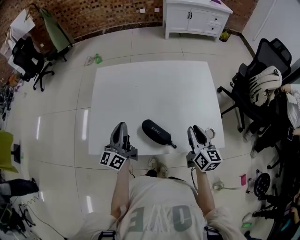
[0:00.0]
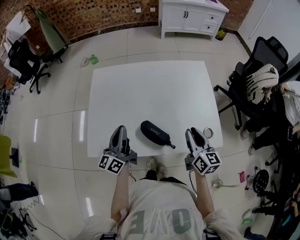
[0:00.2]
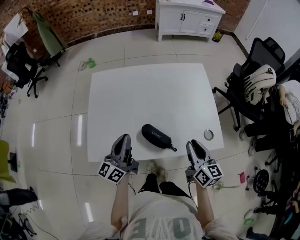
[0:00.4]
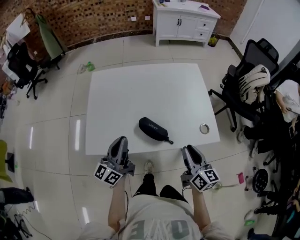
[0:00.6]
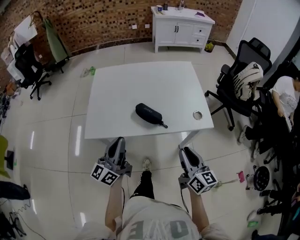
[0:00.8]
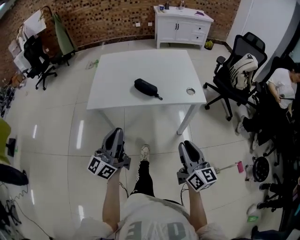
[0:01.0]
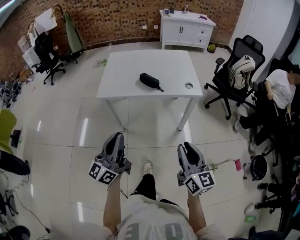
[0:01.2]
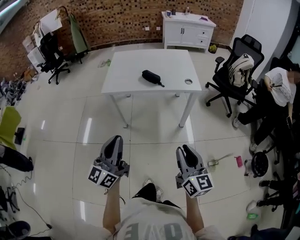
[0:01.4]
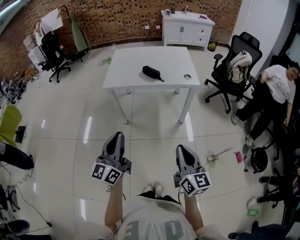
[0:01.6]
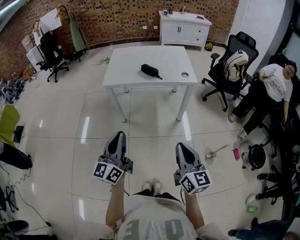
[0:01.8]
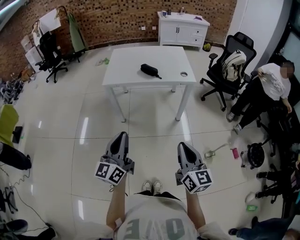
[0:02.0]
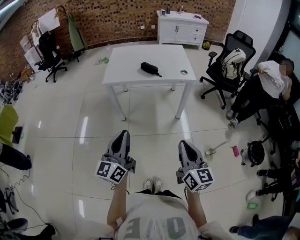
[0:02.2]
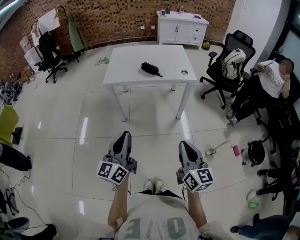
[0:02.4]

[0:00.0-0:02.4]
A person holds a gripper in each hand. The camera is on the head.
0:00.0 to 0:01.2: The two grippers travel together, backward, roughly 60 cm.
0:01.2 to 0:02.4: The two grippers go some 20 cm backward. The right gripper closes up.

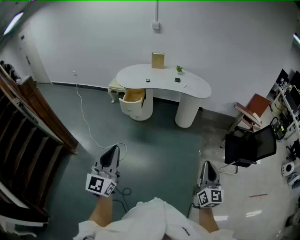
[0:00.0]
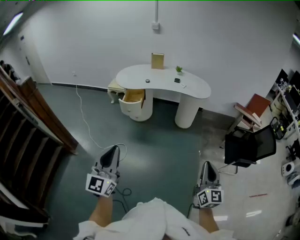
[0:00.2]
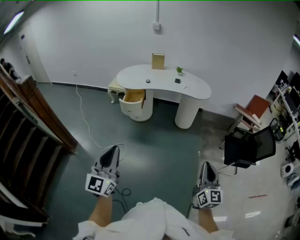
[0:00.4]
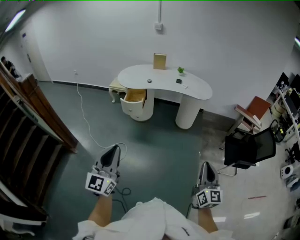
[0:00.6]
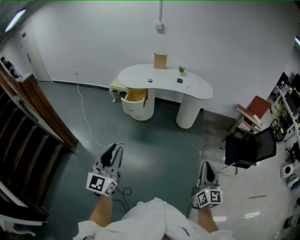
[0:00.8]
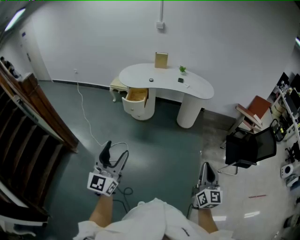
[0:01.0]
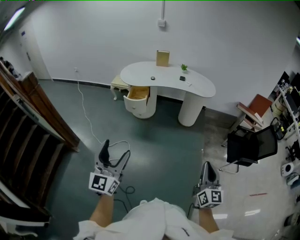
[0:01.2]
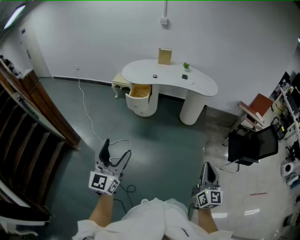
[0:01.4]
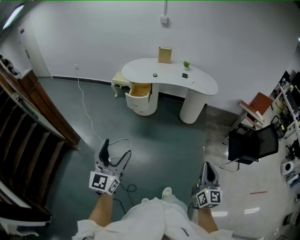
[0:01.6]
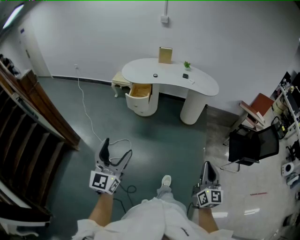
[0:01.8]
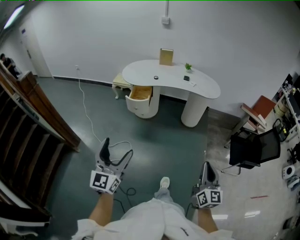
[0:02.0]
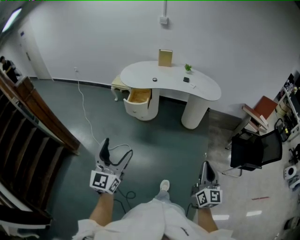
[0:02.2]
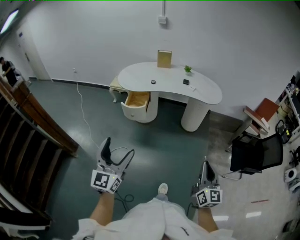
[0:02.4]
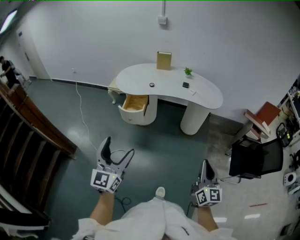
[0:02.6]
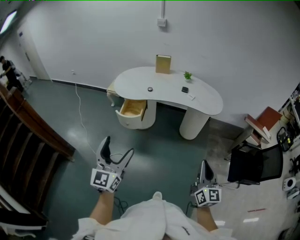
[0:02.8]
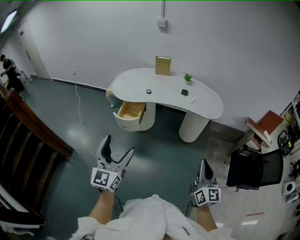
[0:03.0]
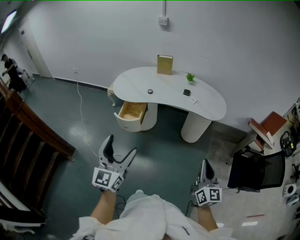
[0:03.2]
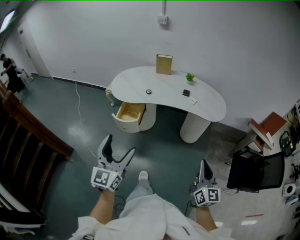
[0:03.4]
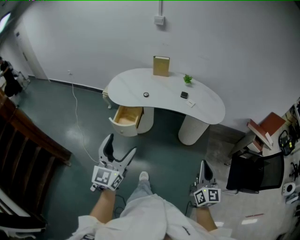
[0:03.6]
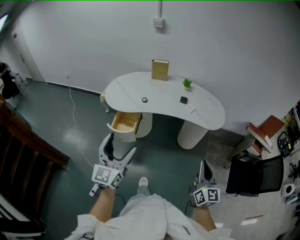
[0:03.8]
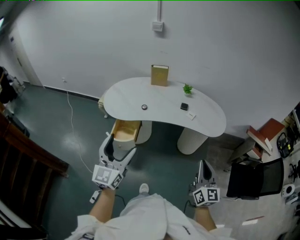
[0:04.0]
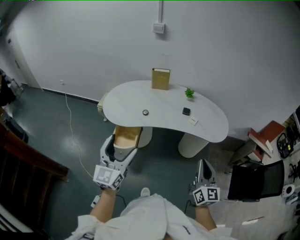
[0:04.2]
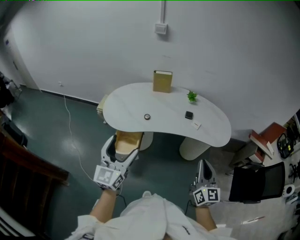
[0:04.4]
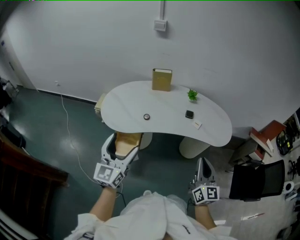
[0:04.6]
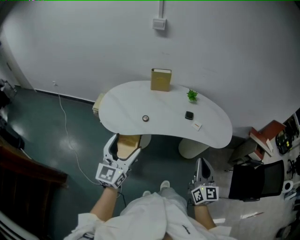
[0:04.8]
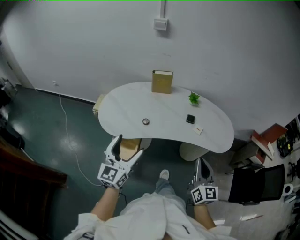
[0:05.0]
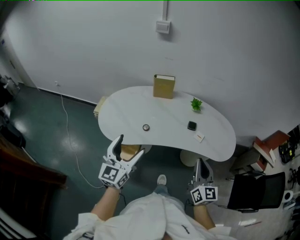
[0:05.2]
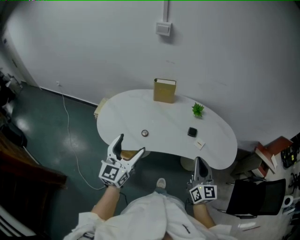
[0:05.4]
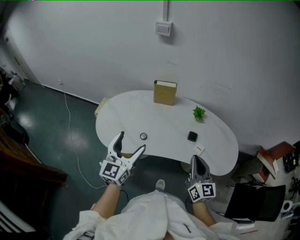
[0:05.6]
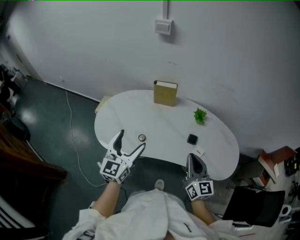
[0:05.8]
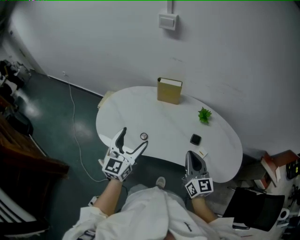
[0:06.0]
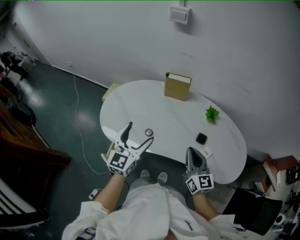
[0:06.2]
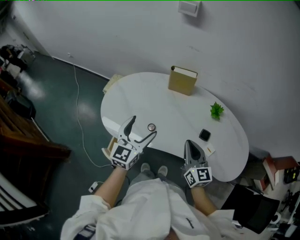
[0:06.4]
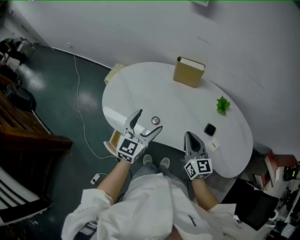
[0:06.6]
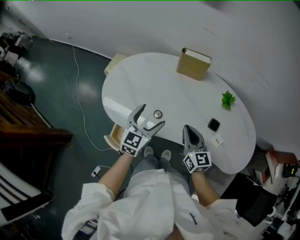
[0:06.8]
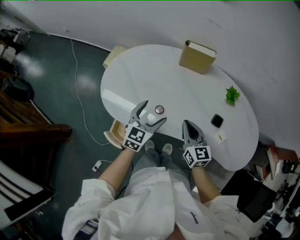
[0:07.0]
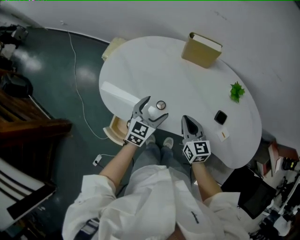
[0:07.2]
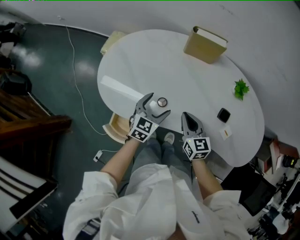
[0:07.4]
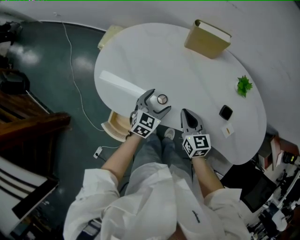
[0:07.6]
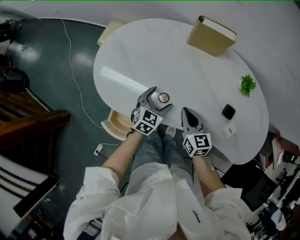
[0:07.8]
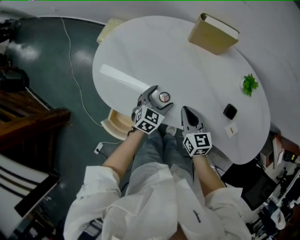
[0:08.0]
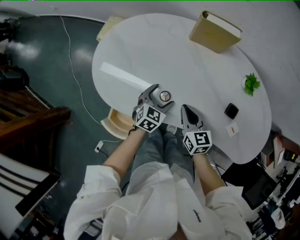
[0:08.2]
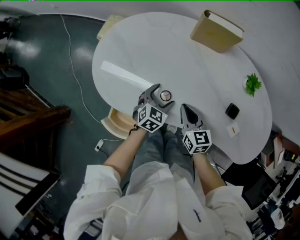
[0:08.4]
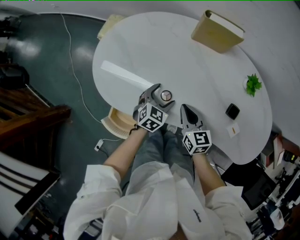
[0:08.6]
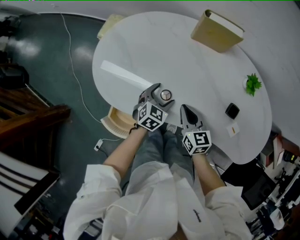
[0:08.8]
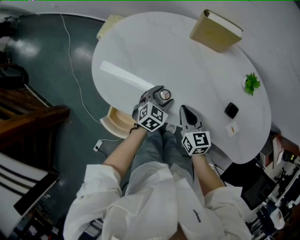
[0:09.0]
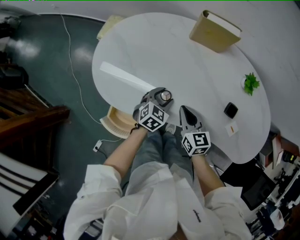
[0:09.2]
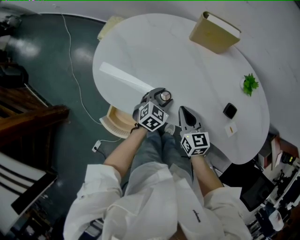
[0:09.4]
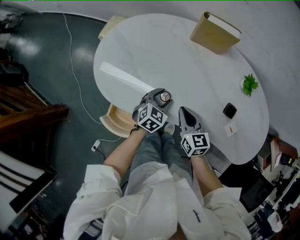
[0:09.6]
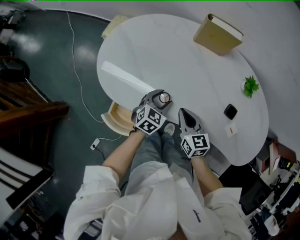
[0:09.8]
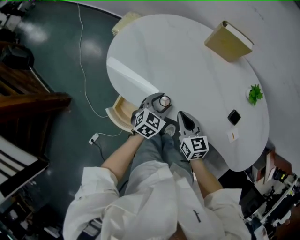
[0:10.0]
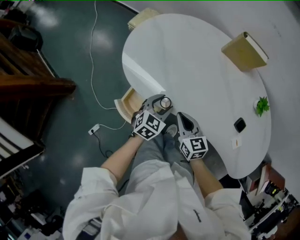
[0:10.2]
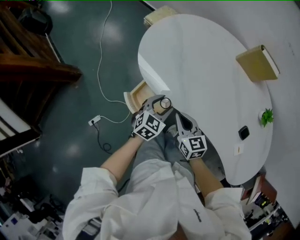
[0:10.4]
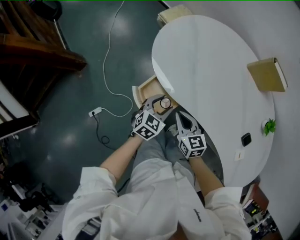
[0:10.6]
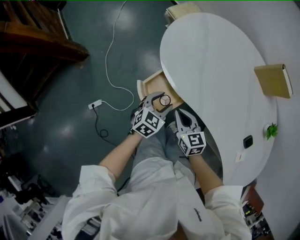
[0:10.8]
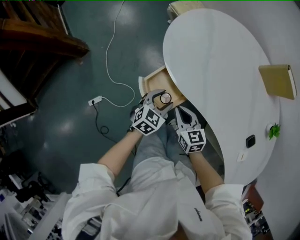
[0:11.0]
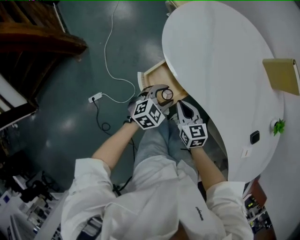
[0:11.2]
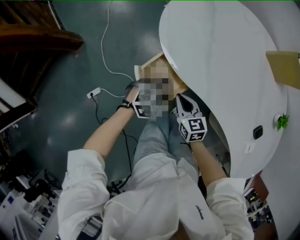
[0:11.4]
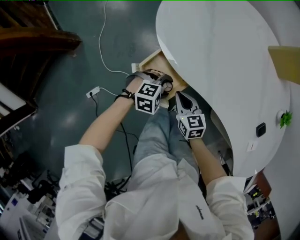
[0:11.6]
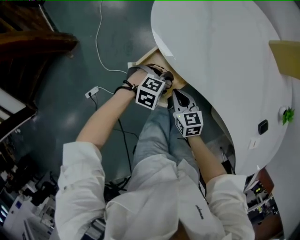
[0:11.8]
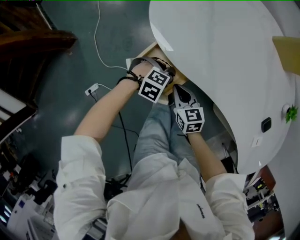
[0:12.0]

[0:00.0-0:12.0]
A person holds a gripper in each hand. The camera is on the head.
0:00.0 to 0:01.6: The two grippers go about 10 cm to the left. The left gripper opens.
0:01.6 to 0:03.0: Both grippers travel together forward, approximately 30 cm.
0:03.0 to 0:04.4: Both grippers travel together forward, roughly 30 cm.
0:04.4 to 0:06.0: The two grippers go roughly 30 cm forward. The right gripper changes its angle by approximately 20 degrees.
0:06.0 to 0:07.6: The left gripper is displaced downward by roughly 30 cm, and points its fingers about 30 degrees further downward. The right gripper moves downward, to the left and forward, approximately 30 cm, and swivels about 30 degrees.
0:07.6 to 0:09.0: The left gripper shifts approximately 5 cm downward.
0:09.0 to 0:10.4: The two grippers go approximately 15 cm to the left and backward. The left gripper changes its angle by roughly 20 degrees. Meanwhile the right gripper turns by approximately 30 degrees.
0:10.4 to 0:12.0: Both grippers travel together downward, approximately 15 cm. The left gripper swivels some 70 degrees.

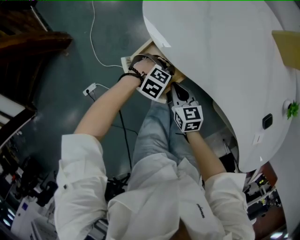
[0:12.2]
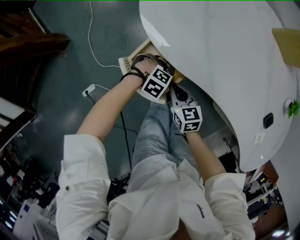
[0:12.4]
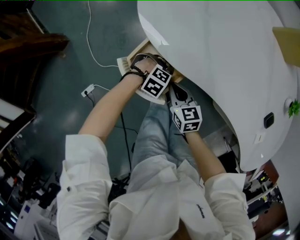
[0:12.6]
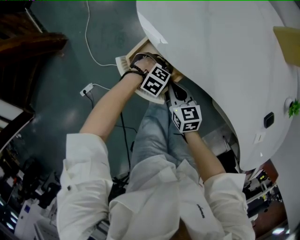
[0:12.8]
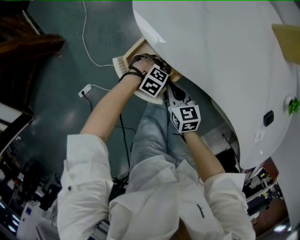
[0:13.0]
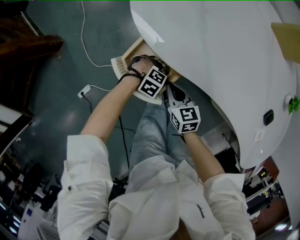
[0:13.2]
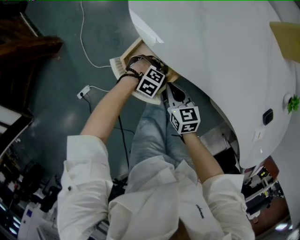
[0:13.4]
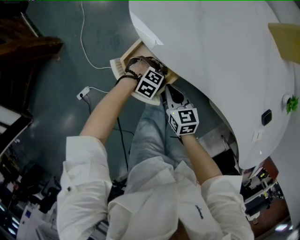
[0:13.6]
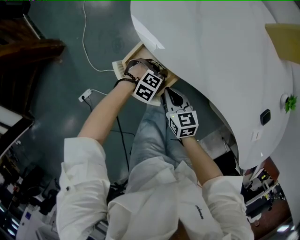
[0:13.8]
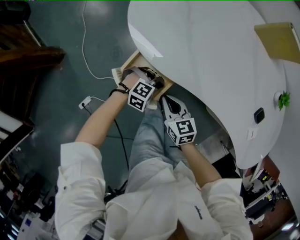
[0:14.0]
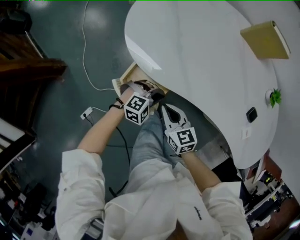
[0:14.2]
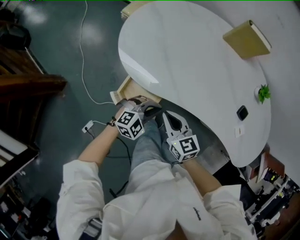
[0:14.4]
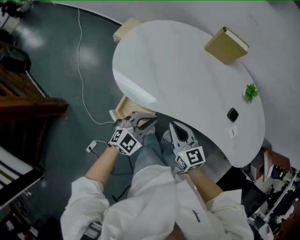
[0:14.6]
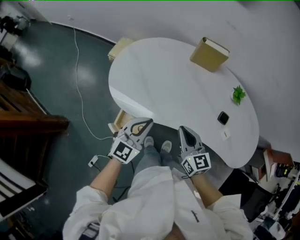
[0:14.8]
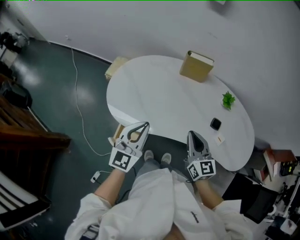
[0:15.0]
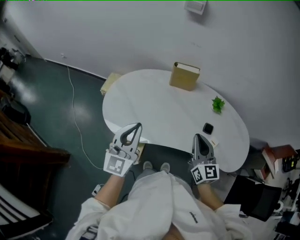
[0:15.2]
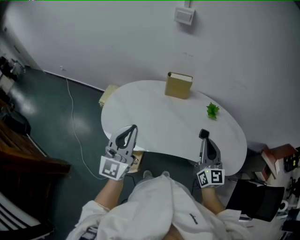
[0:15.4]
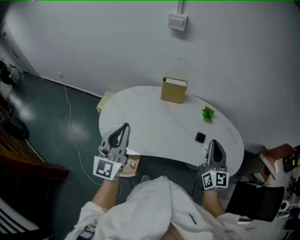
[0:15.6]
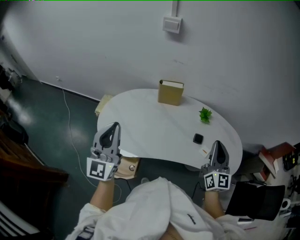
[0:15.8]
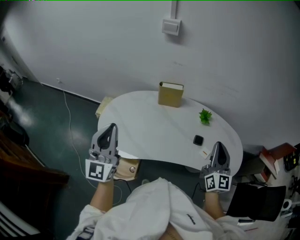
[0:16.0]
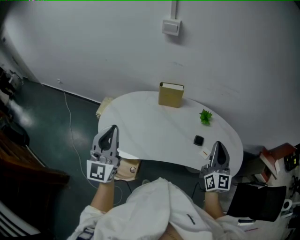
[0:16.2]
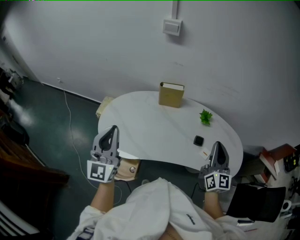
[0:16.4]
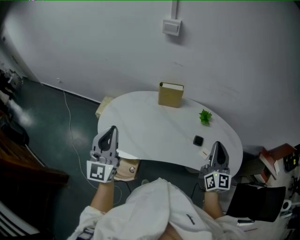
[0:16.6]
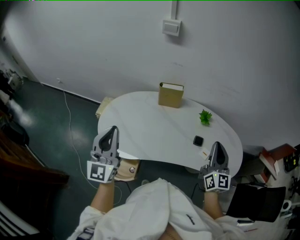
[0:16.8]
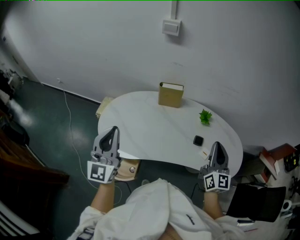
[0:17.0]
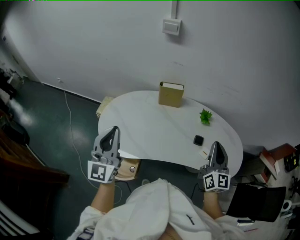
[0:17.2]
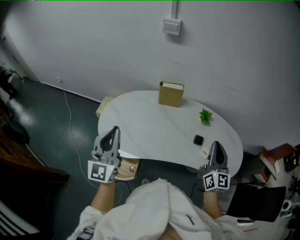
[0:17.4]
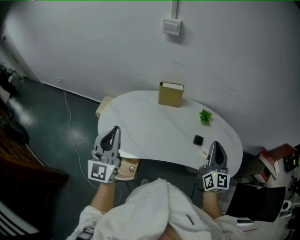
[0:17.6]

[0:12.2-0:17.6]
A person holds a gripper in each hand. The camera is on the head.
0:12.2 to 0:13.6: The left gripper is displaced downward by approximately 5 cm.
0:13.6 to 0:15.0: Both grippers travel together upward, about 40 cm. The left gripper tips its fingers upward by approximately 60 degrees, and closes. Meanwhile the right gripper rotates approximately 50 degrees.
0:15.0 to 0:16.2: The right gripper goes about 25 cm to the right and upward, and changes its angle by some 30 degrees, while the left gripper travels upward by approximately 15 cm, and rotates about 20 degrees.
0:16.2 to 0:17.6: Both grippers stay put.

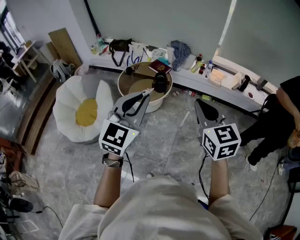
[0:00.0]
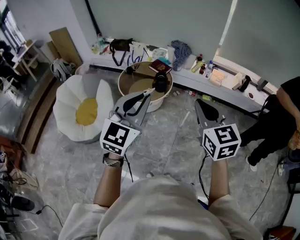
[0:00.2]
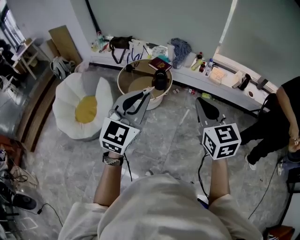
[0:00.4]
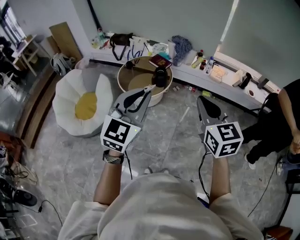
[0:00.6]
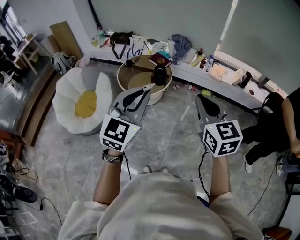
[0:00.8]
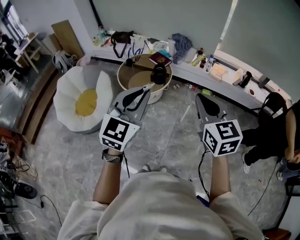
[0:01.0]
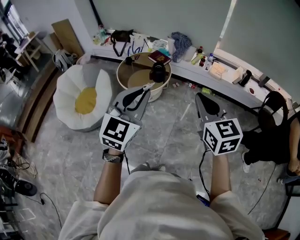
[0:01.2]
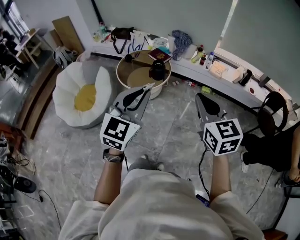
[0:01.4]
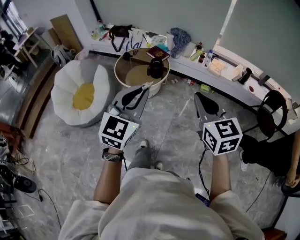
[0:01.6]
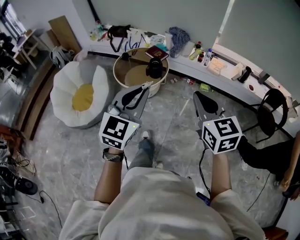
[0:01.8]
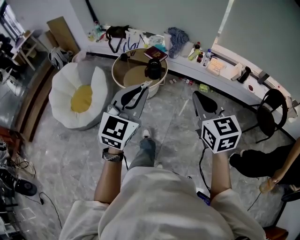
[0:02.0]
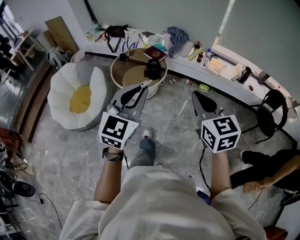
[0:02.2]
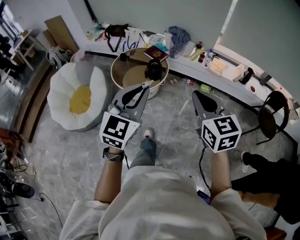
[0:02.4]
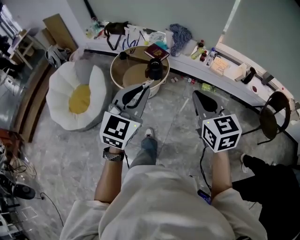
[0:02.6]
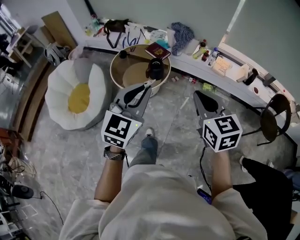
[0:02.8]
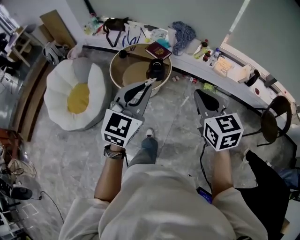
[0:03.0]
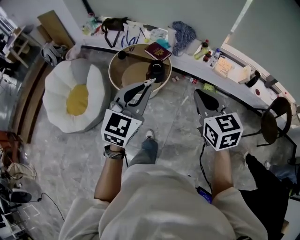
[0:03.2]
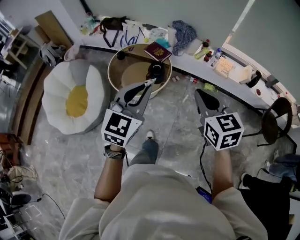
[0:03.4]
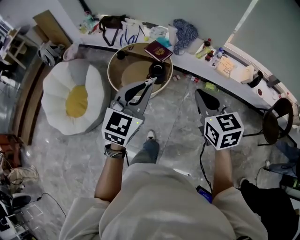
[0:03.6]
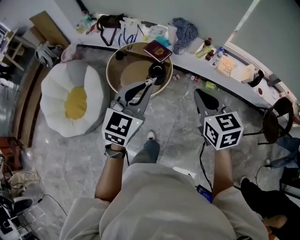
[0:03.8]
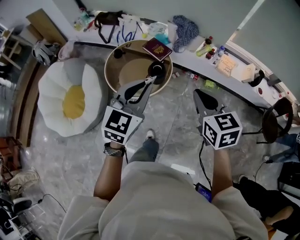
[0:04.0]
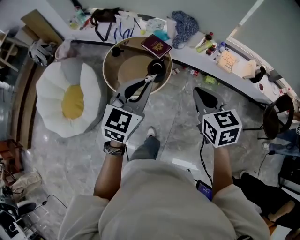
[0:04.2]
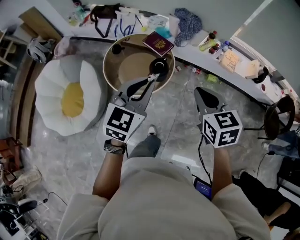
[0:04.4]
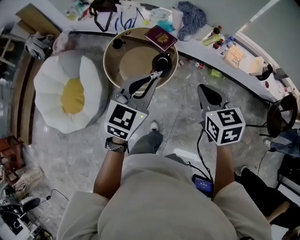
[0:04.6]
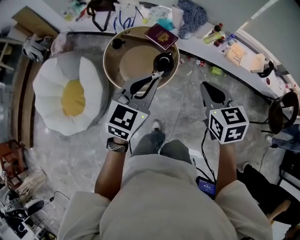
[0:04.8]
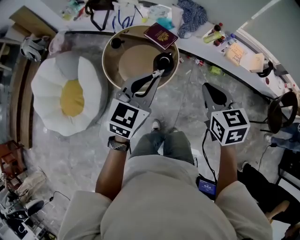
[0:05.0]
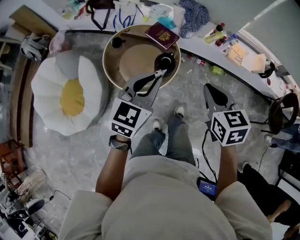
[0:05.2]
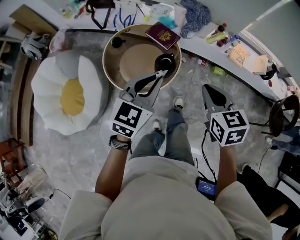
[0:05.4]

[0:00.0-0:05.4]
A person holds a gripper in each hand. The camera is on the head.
0:00.0 to 0:01.4: The grippers both shift to the right by about 5 cm.
0:01.4 to 0:02.8: The two grippers go about 15 cm forward.
0:02.8 to 0:04.0: Both grippers travel together forward, roughly 20 cm.
0:04.0 to 0:05.4: Both grippers move forward and downward, approximately 15 cm.
